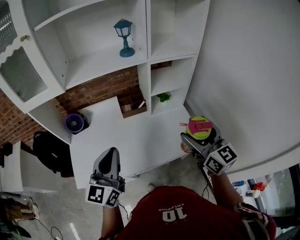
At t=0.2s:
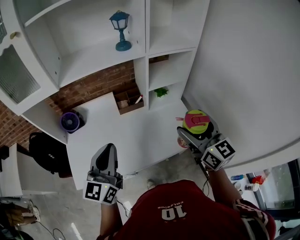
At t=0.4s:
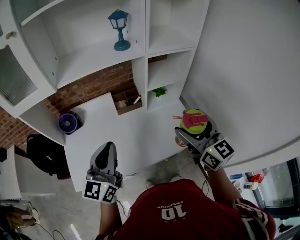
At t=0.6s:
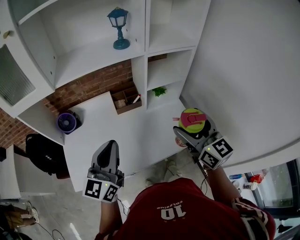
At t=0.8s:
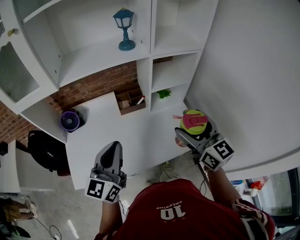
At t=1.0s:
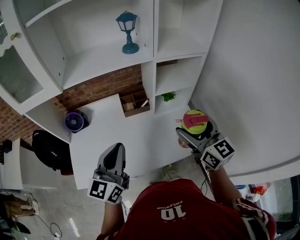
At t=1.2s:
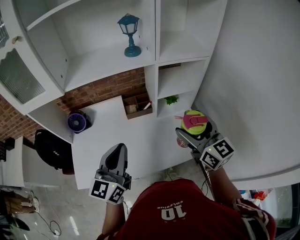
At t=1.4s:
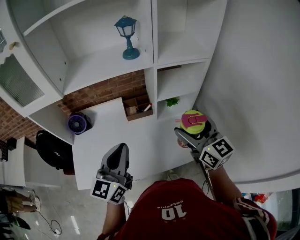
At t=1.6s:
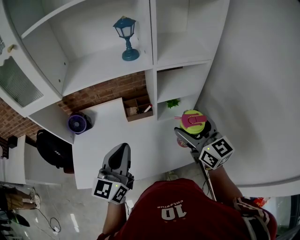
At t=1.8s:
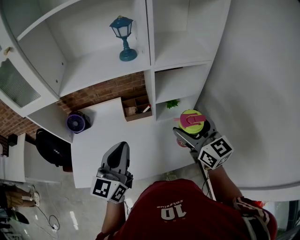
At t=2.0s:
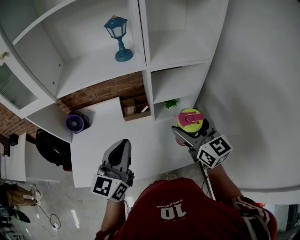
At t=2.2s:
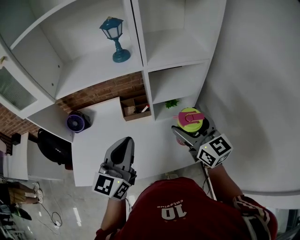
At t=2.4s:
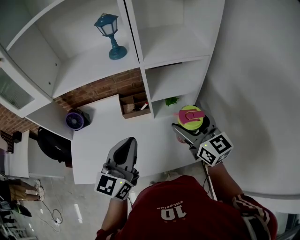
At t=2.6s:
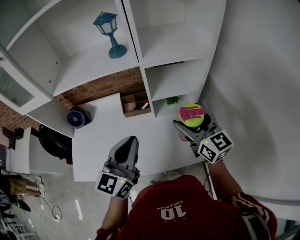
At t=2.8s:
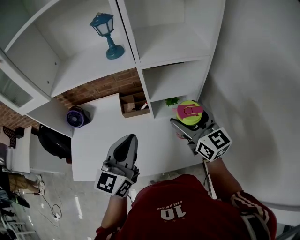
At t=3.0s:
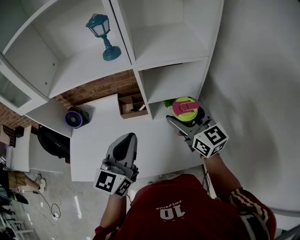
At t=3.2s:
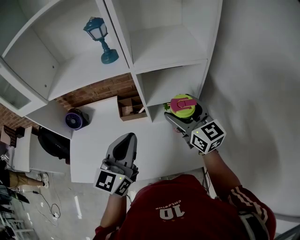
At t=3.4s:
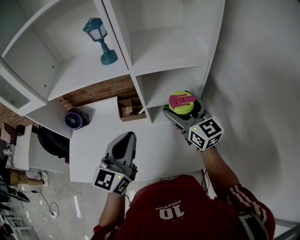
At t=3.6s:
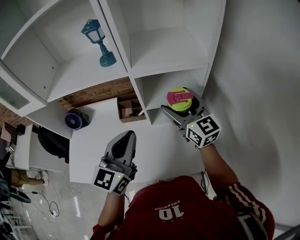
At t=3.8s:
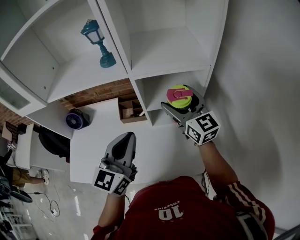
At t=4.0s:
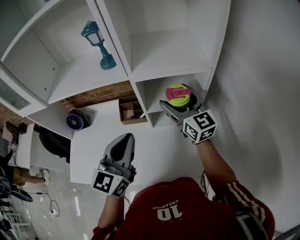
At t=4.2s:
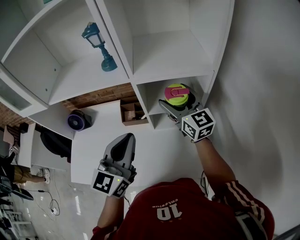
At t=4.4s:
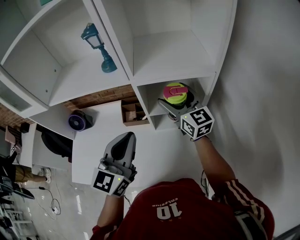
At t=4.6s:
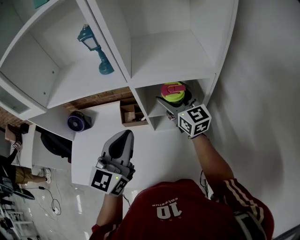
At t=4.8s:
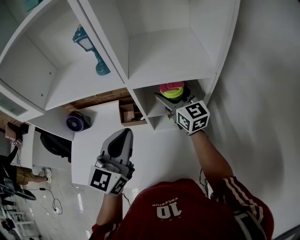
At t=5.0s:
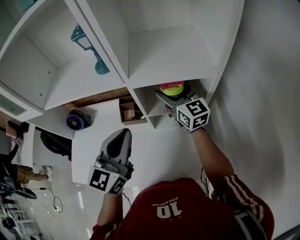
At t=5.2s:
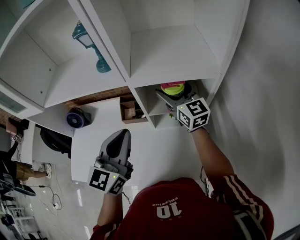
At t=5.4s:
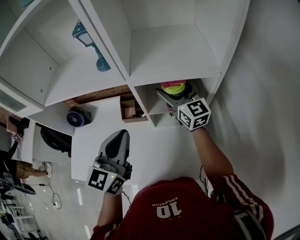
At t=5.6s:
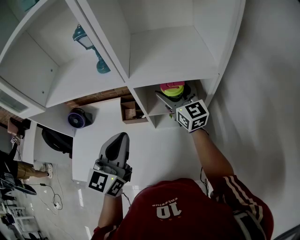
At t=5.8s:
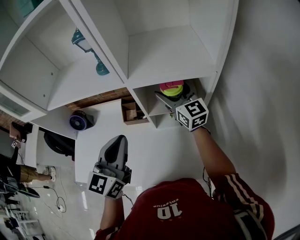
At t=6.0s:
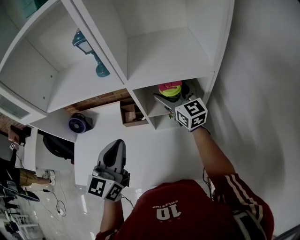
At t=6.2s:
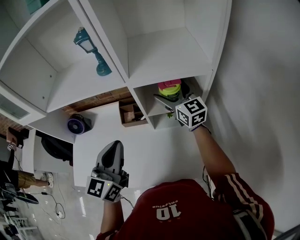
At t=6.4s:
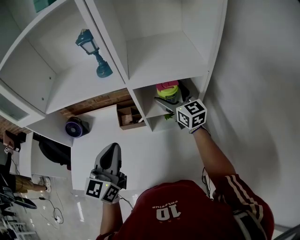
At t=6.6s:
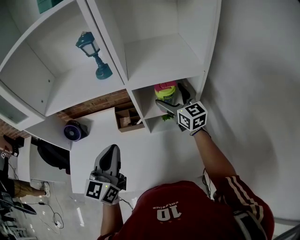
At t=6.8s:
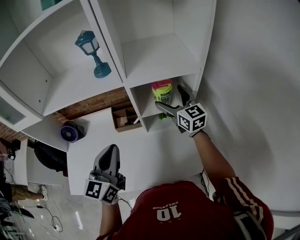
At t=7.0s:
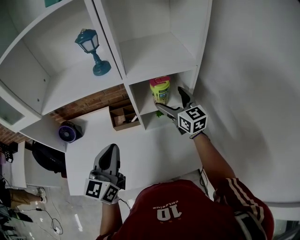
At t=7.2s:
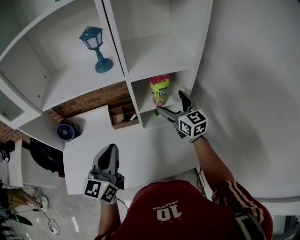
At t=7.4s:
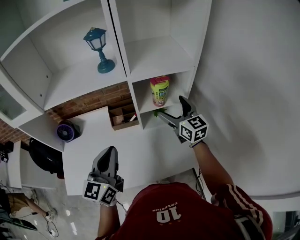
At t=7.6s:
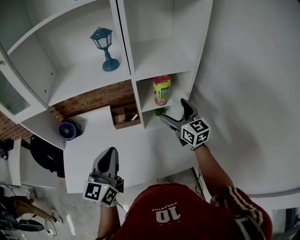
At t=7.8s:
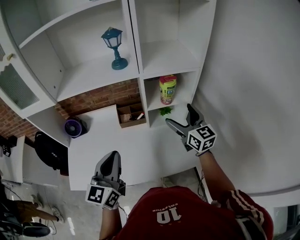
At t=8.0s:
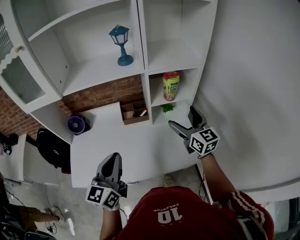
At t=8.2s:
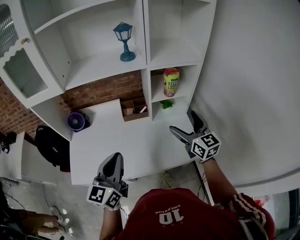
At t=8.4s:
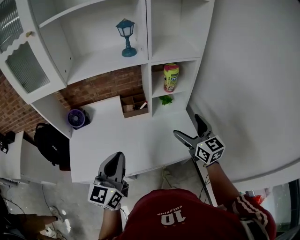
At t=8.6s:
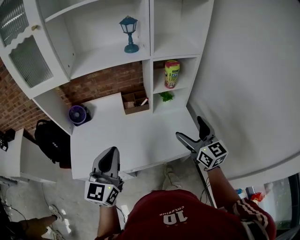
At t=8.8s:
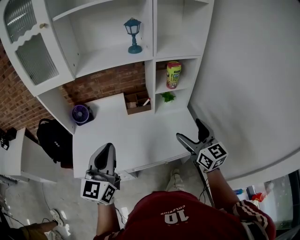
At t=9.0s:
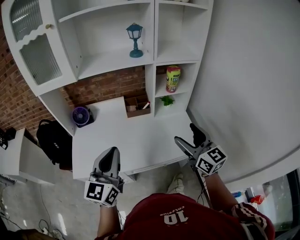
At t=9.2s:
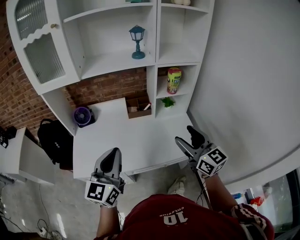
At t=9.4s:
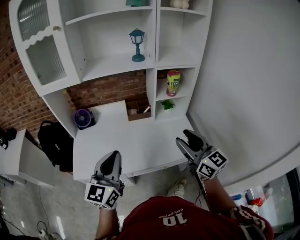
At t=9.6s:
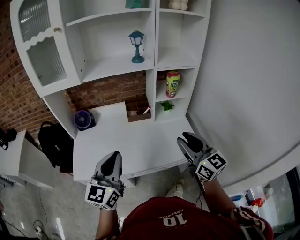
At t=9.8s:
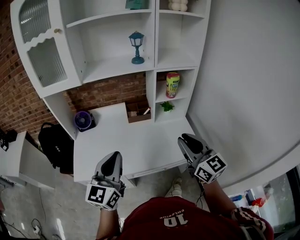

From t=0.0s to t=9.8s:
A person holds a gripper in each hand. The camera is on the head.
From t=0.0s to t=1.4s: Both grippers travel together forward, roughly 10 cm.
From t=1.4s to t=2.8s: The right gripper moves forward and to the right, roughly 10 cm. Meanwhile the left gripper moves to the right and forward, about 15 cm.
From t=2.8s to t=4.2s: The left gripper shifts approximately 5 cm forward. Meanwhile the right gripper shifts approximately 15 cm forward.
From t=4.2s to t=5.6s: The right gripper shifts some 5 cm forward.
From t=5.6s to t=7.0s: The right gripper goes about 10 cm backward; the left gripper travels backward and to the left by about 10 cm.
From t=7.0s to t=8.4s: The left gripper shifts roughly 20 cm backward and to the left. The right gripper is displaced backward by roughly 25 cm.
From t=8.4s to t=9.8s: The right gripper moves backward, to the left and upward, about 15 cm, and closes up; the left gripper heads backward, covering roughly 5 cm.

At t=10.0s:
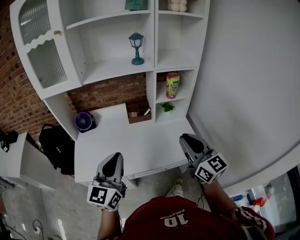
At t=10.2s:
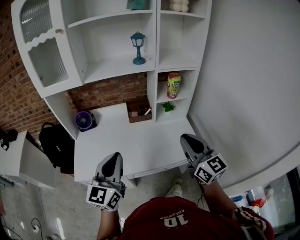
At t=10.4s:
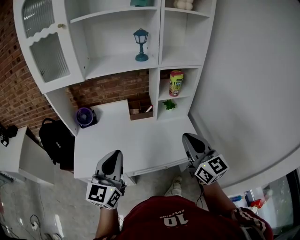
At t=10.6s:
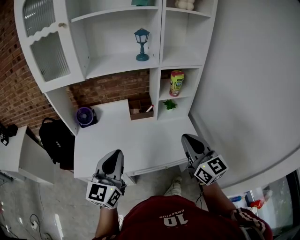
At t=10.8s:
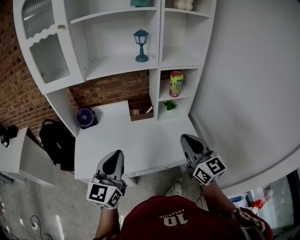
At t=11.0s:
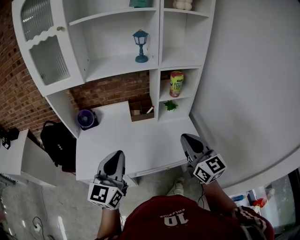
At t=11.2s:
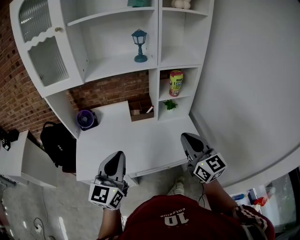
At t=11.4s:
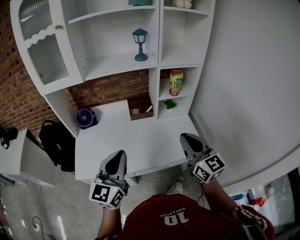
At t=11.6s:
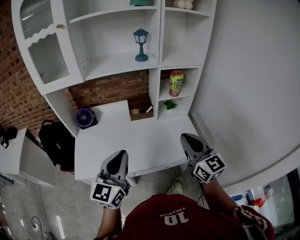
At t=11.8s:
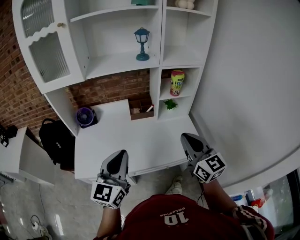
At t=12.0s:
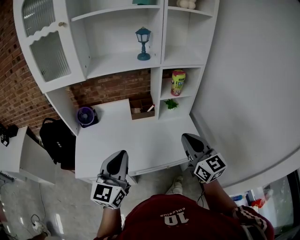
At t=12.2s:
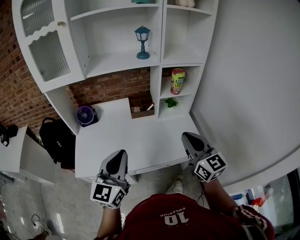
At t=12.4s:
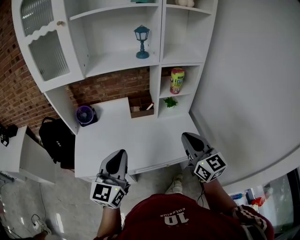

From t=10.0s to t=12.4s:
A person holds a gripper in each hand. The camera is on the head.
From t=10.0s to t=11.2s: The grippers make only small movements.
From t=11.2s to t=12.4s: Neither gripper changes place.

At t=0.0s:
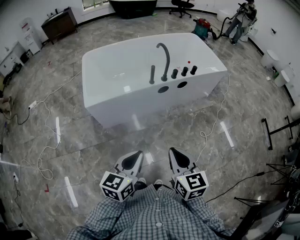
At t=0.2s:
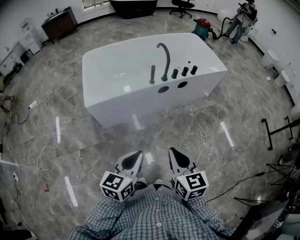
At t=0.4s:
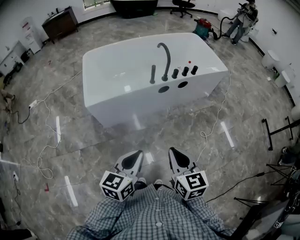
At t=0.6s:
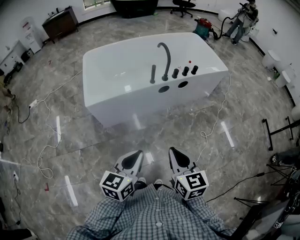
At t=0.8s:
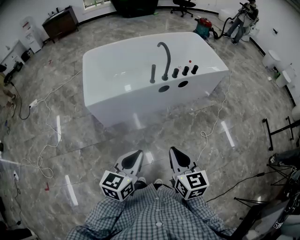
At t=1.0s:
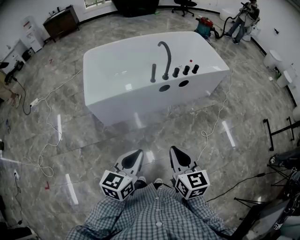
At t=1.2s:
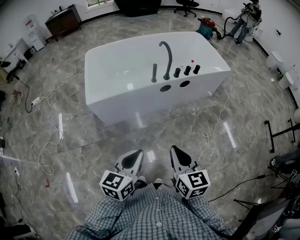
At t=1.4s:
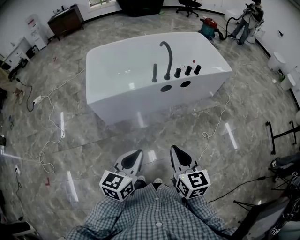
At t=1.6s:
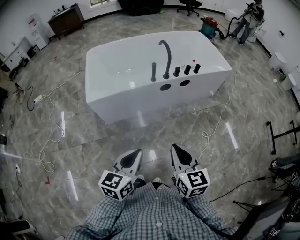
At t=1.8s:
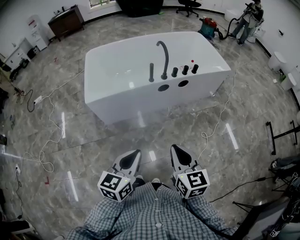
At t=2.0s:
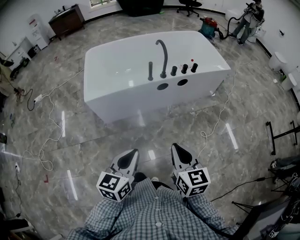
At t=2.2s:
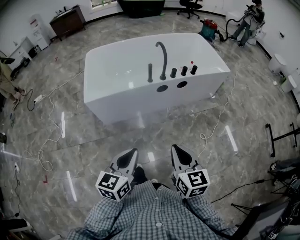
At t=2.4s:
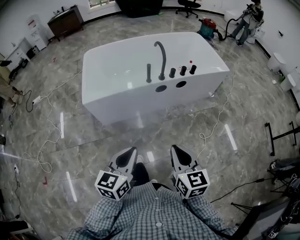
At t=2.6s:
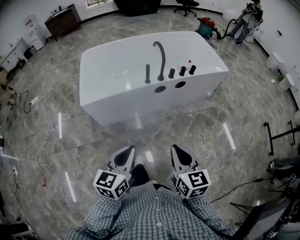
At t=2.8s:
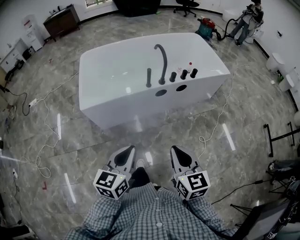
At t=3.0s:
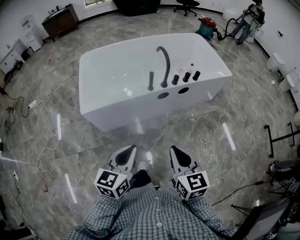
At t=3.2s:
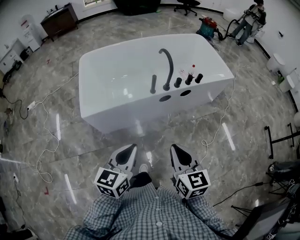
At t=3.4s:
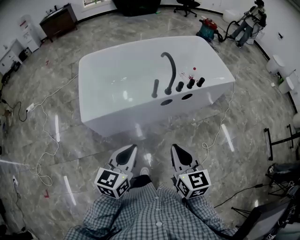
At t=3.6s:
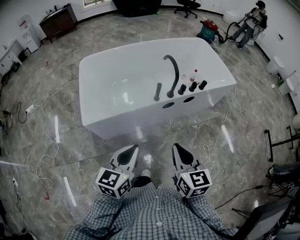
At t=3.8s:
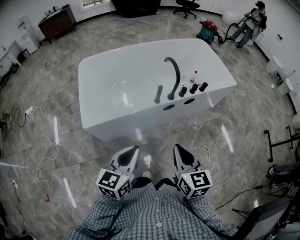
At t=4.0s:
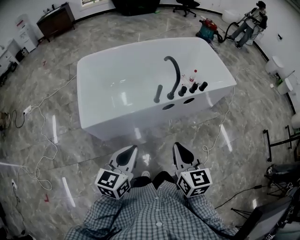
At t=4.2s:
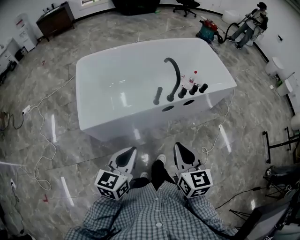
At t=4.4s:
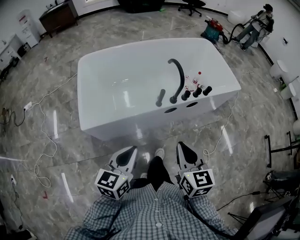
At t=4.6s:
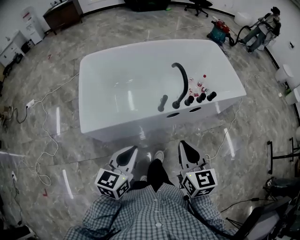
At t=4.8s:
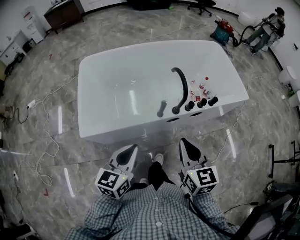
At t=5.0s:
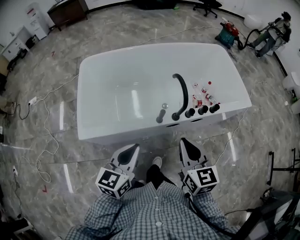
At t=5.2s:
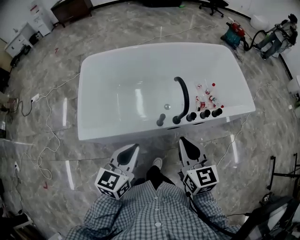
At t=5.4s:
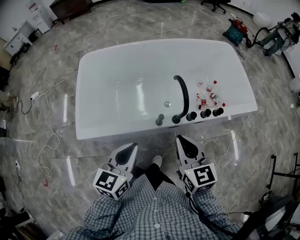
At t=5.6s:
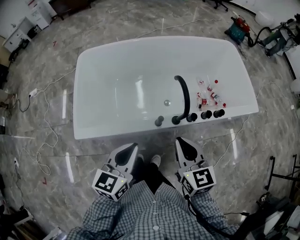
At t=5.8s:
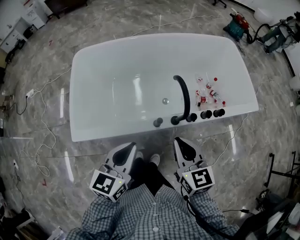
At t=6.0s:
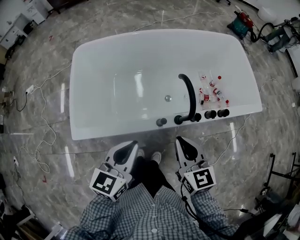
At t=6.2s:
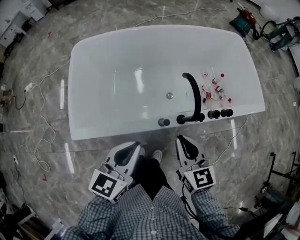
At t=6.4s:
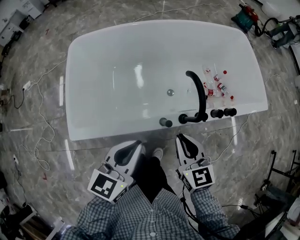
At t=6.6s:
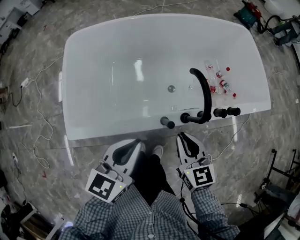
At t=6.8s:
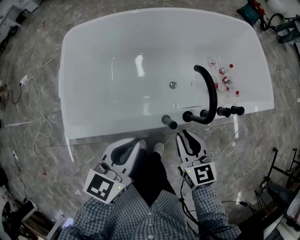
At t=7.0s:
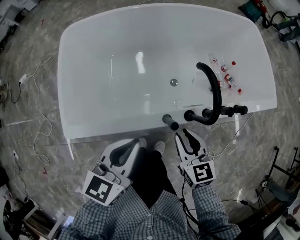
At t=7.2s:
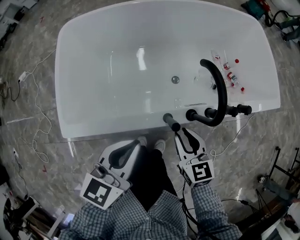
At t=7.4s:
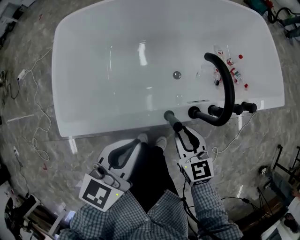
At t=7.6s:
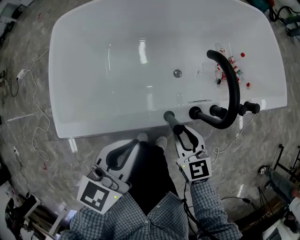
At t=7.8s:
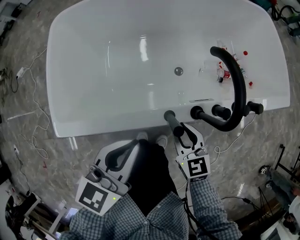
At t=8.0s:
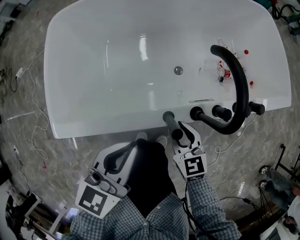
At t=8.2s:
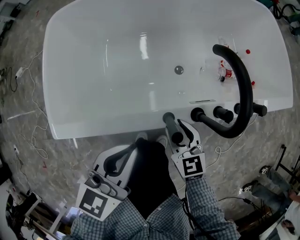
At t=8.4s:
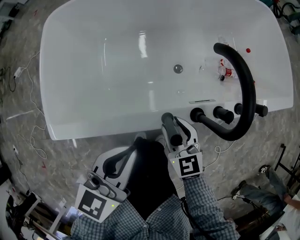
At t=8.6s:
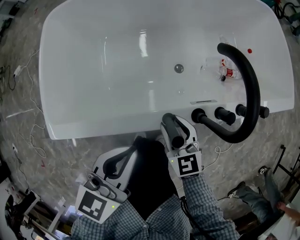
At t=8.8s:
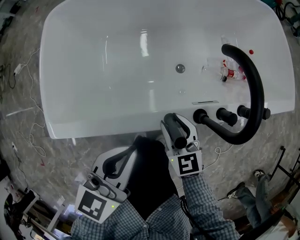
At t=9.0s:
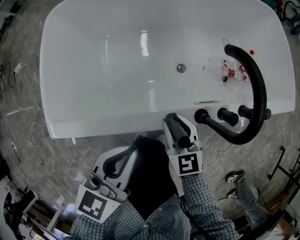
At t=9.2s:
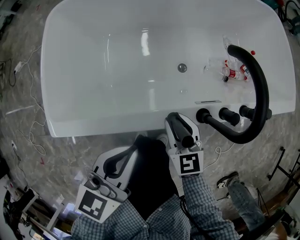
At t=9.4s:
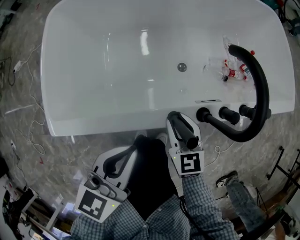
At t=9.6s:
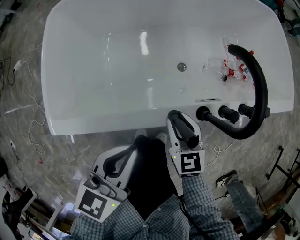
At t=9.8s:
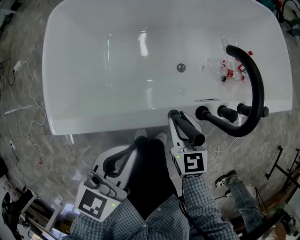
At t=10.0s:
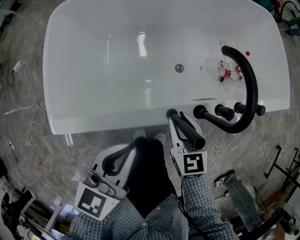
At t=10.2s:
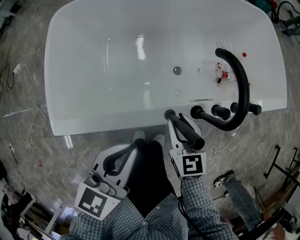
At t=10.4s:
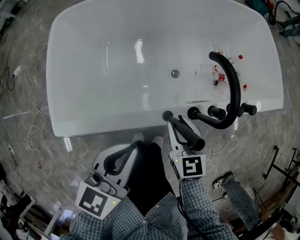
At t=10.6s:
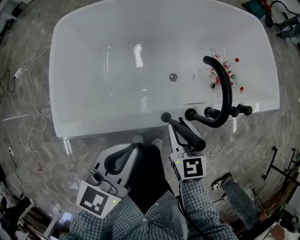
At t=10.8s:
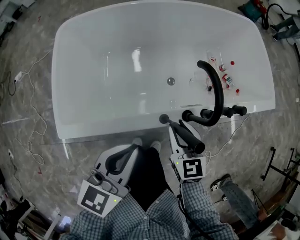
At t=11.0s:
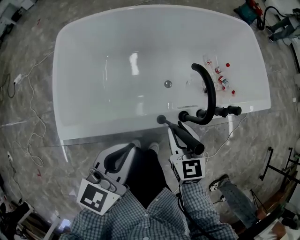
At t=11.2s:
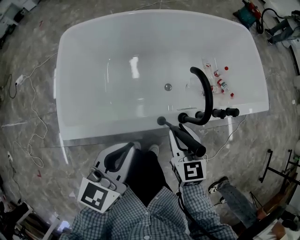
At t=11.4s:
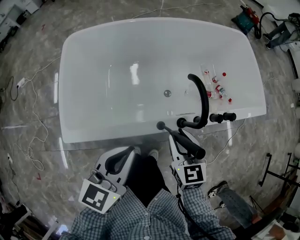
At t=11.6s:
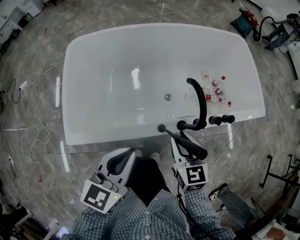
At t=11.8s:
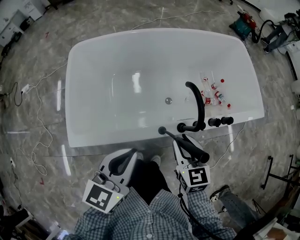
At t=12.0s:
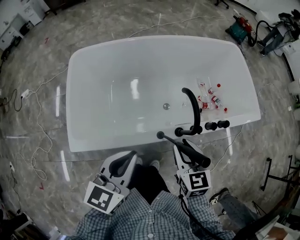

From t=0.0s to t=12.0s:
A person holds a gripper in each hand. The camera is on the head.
From t=0.0s to t=1.6s: The grippers move only a little.
From t=1.6s to t=3.0s: The grippers both shift forward by some 10 cm.
From t=3.0s to t=4.4s: The left gripper heads forward and to the left, covering about 20 cm. The right gripper shifts approximately 20 cm forward.
From t=4.4s to t=6.0s: Both grippers move forward, some 30 cm.
From t=6.0s to t=7.6s: The right gripper shifts some 25 cm downward, while the left gripper moves downward and forward, about 15 cm.
From t=7.6s to t=9.0s: Both grippers travel together downward, some 5 cm.
From t=9.0s to t=10.4s: The grippers both shift upward by approximately 5 cm.
From t=10.4s to t=12.0s: Both grippers travel together upward, some 15 cm.
